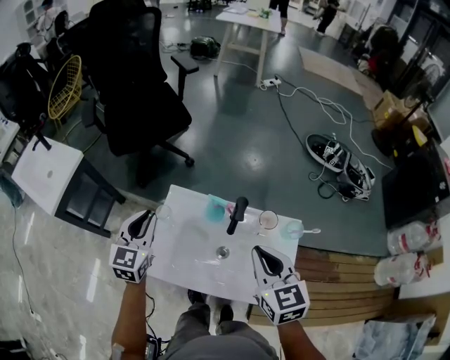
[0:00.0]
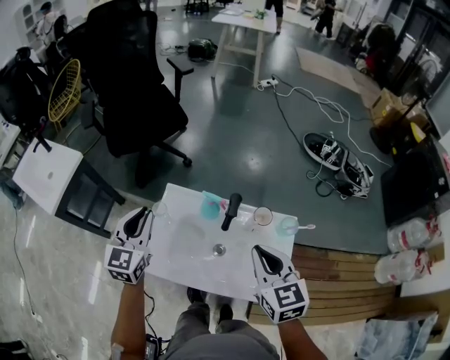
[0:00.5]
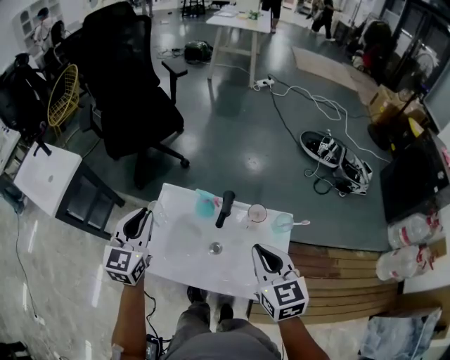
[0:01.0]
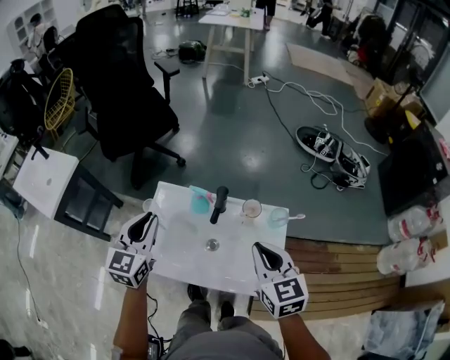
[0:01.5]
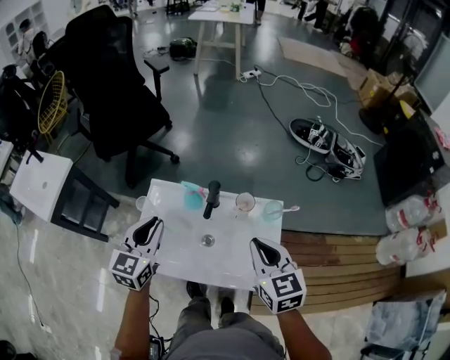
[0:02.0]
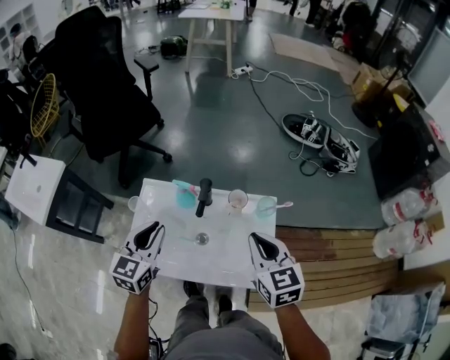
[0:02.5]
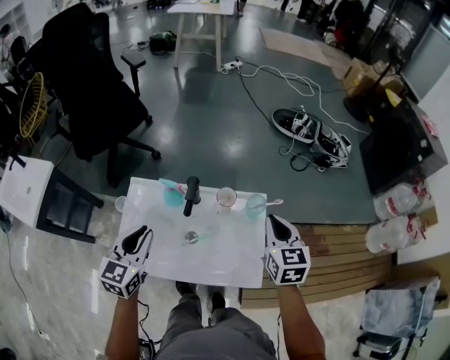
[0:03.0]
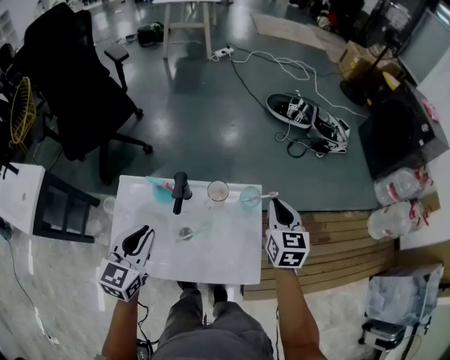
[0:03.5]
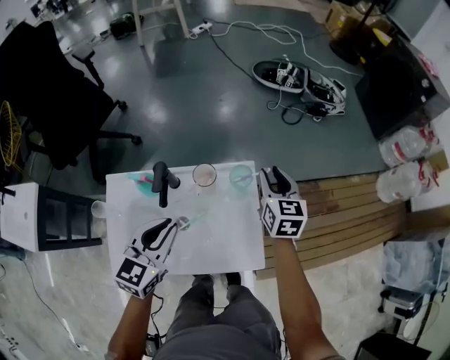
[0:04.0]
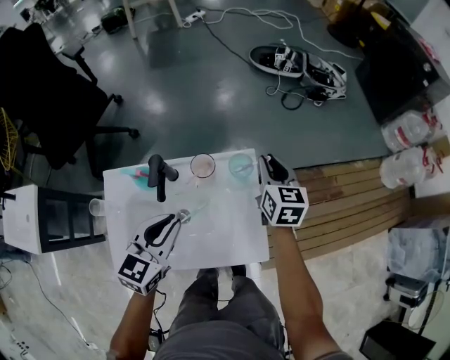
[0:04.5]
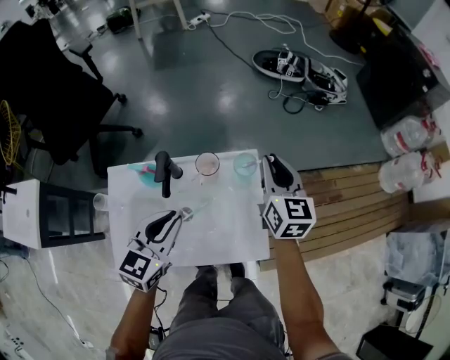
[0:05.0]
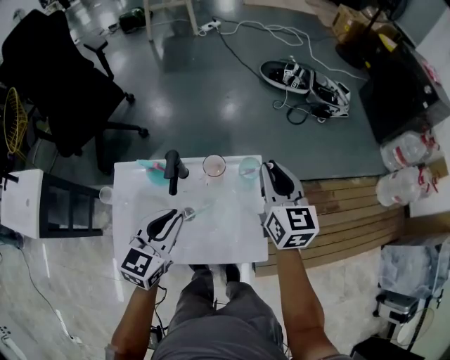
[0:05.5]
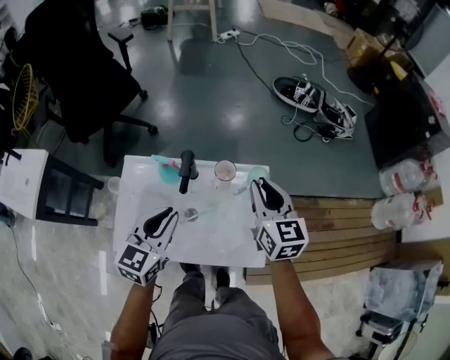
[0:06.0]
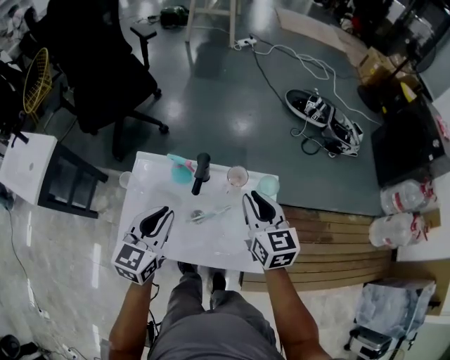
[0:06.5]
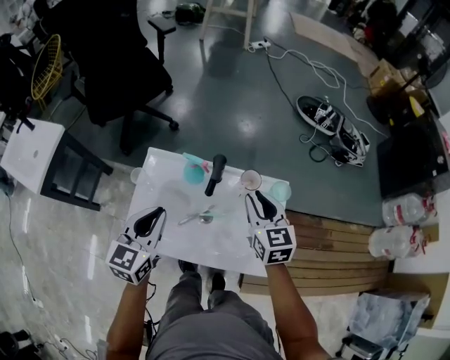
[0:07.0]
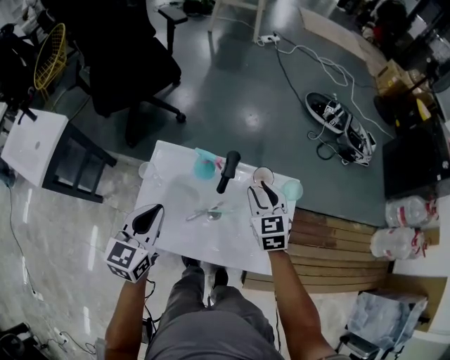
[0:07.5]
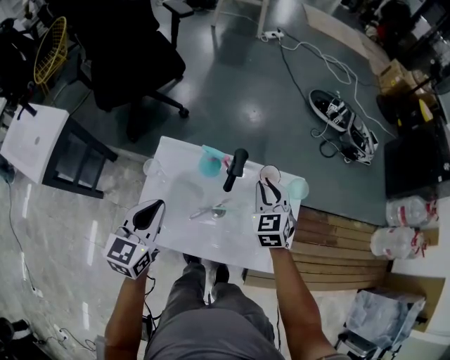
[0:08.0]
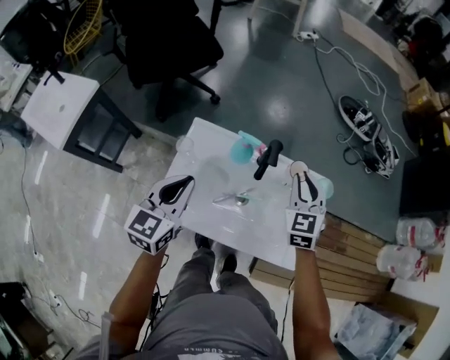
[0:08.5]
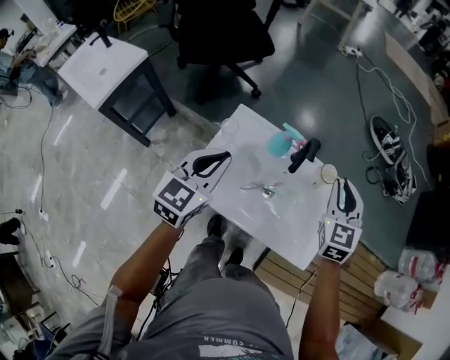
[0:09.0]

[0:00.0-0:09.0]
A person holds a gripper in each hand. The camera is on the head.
0:00.0 to 0:02.0: Both grippers travel together to the right and backward, roughly 10 cm.
0:02.0 to 0:04.5: The right gripper moves roughly 30 cm, and changes its angle by about 30 degrees. The left gripper changes place by approximately 20 cm, and swivels about 30 degrees.
0:04.5 to 0:07.0: The left gripper moves to the left, roughly 15 cm, and swivels about 30 degrees, while the right gripper heads to the left and backward, covering some 20 cm, and rotates roughly 30 degrees.
0:07.0 to 0:09.0: The left gripper heads to the left, covering approximately 5 cm. The right gripper goes some 5 cm upward, and changes its angle by about 20 degrees.

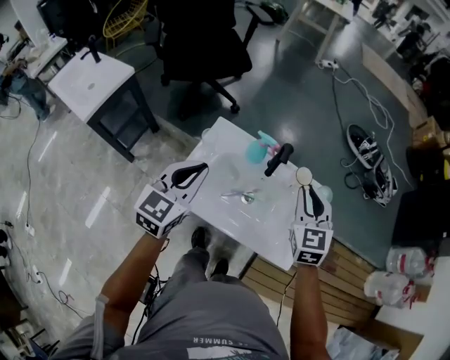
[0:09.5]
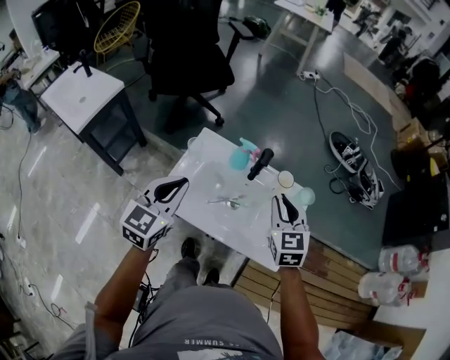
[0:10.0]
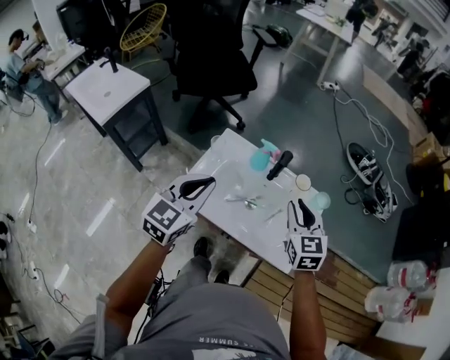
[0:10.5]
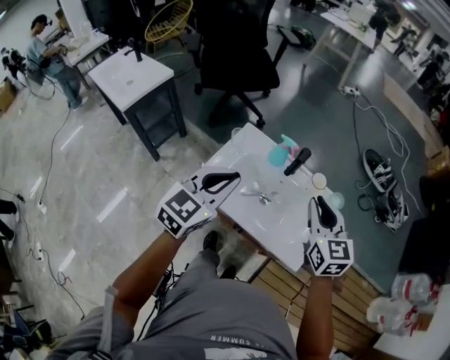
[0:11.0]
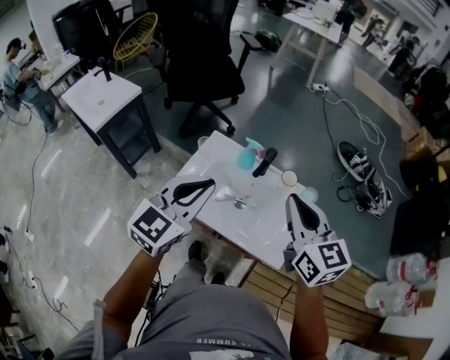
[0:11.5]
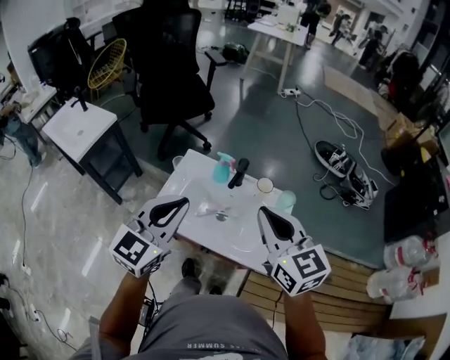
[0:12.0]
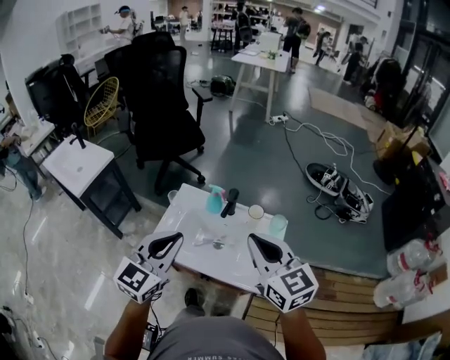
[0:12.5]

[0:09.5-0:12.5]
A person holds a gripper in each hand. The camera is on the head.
0:09.5 to 0:11.0: The left gripper goes approximately 10 cm backward and upward, while the right gripper moves backward, some 10 cm.
0:11.0 to 0:12.5: Both grippers move upward and backward, some 10 cm.

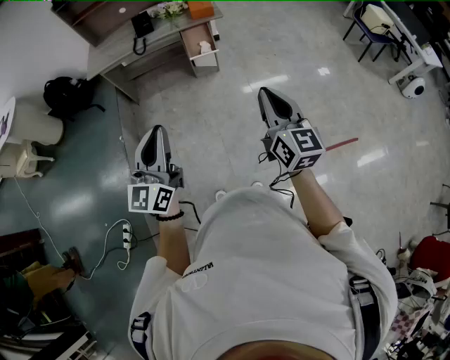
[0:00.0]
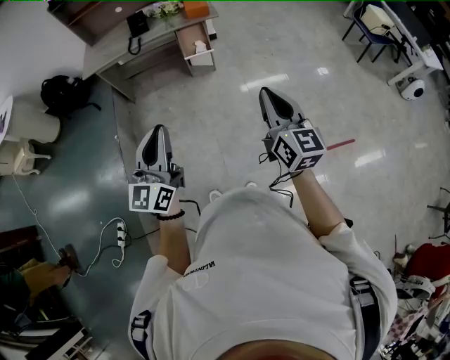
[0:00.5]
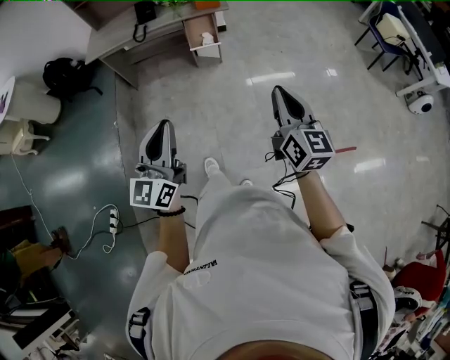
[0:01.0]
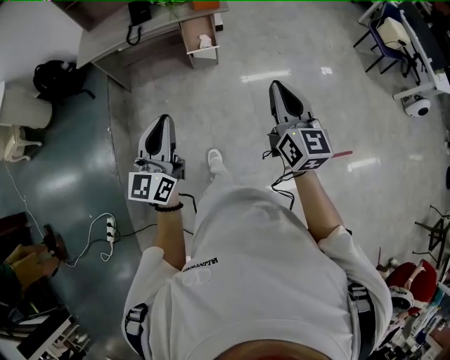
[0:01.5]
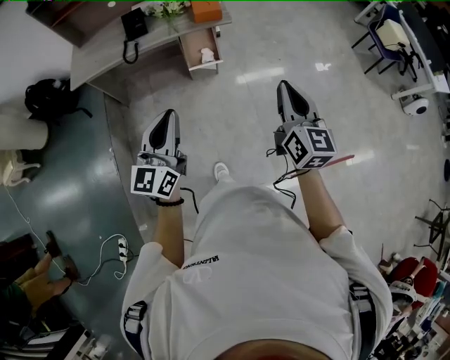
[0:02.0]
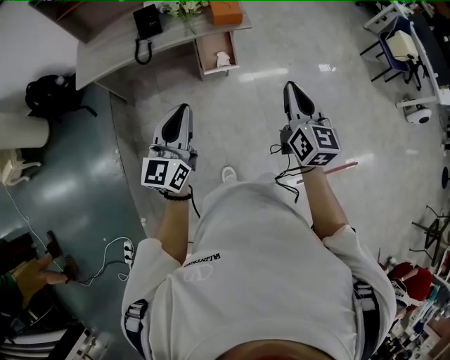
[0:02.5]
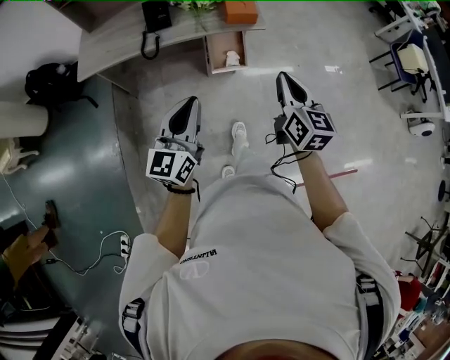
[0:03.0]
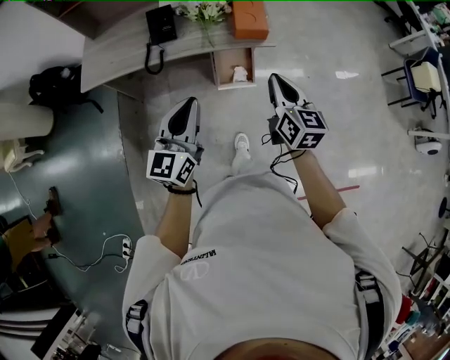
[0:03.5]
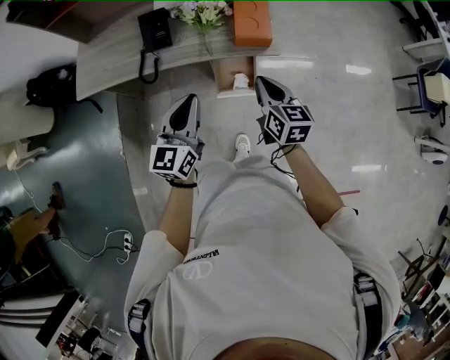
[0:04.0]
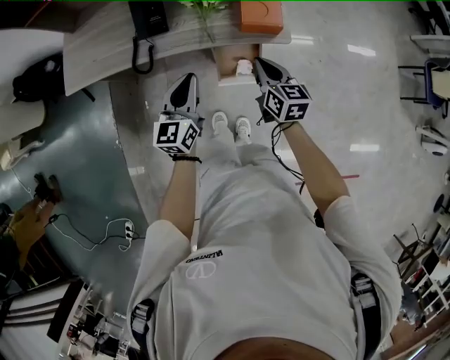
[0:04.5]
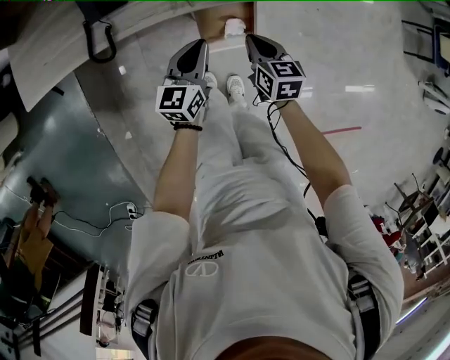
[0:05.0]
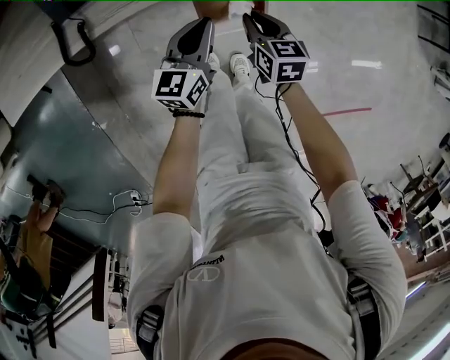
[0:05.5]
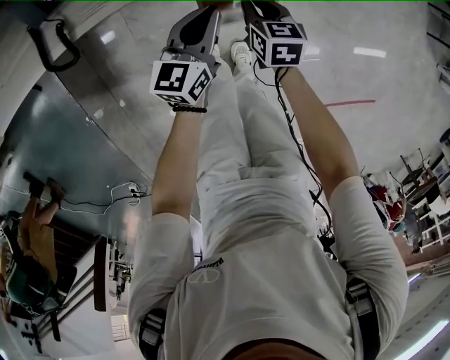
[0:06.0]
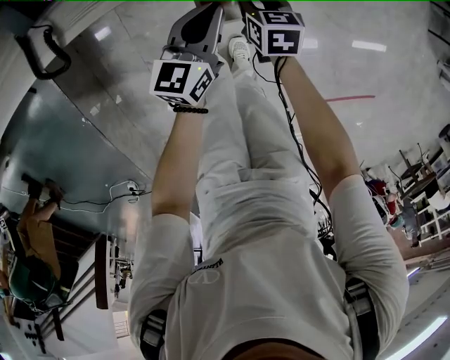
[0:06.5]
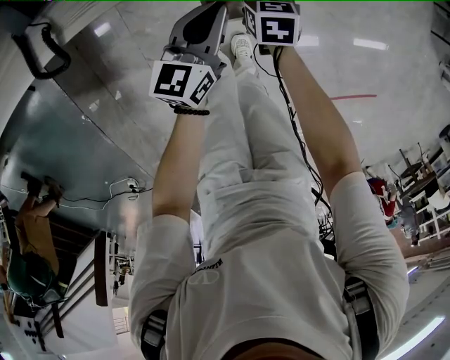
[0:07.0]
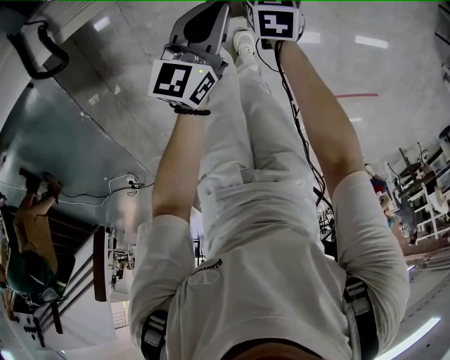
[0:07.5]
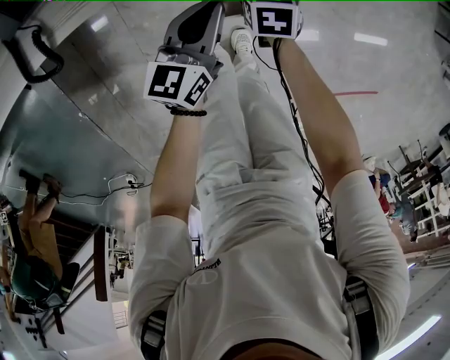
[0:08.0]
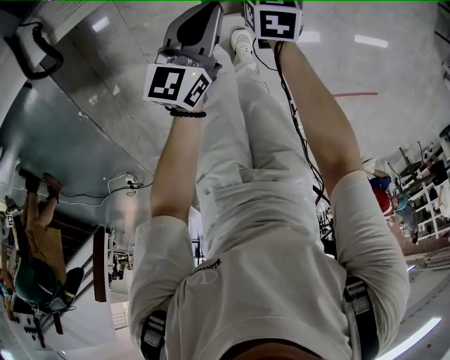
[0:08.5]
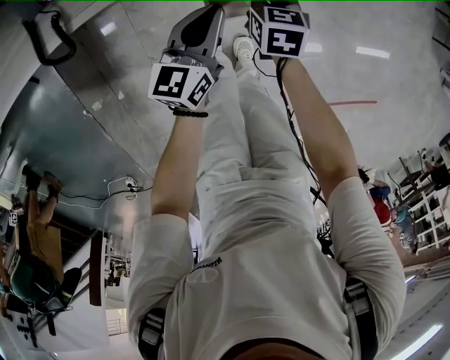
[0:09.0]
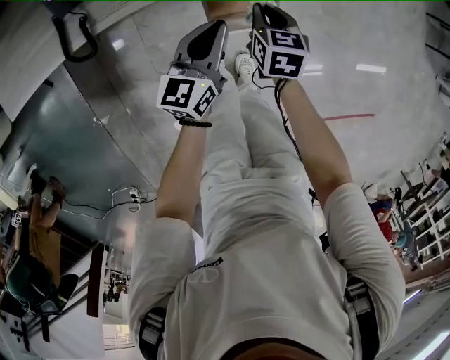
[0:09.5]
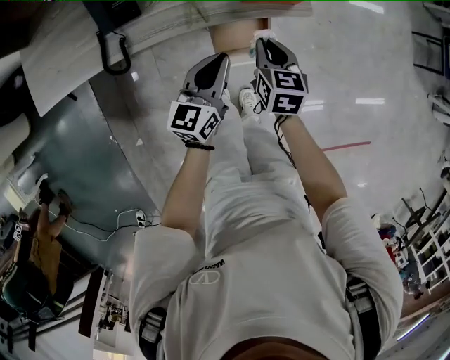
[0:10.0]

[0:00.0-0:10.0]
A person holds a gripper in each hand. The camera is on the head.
0:00.0 to 0:02.0: Both grippers move forward, roughly 30 cm.
0:02.0 to 0:04.0: The left gripper travels forward by approximately 40 cm. Meanwhile the right gripper moves forward and downward, approximately 40 cm, and turns by some 30 degrees.
0:04.0 to 0:06.0: Both grippers travel together downward, about 40 cm. The left gripper changes its angle by some 30 degrees; the right gripper changes its angle by approximately 30 degrees.
0:06.0 to 0:08.0: The right gripper goes some 5 cm downward.
0:08.0 to 0:10.0: The grippers both shift upward by roughly 25 cm. The right gripper changes its angle by approximately 20 degrees.

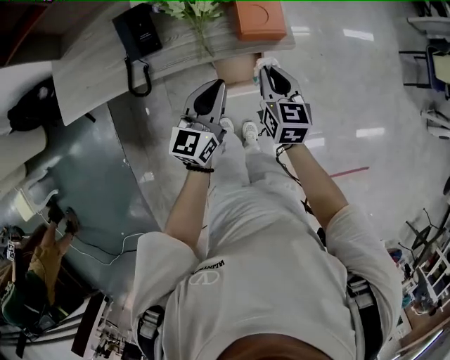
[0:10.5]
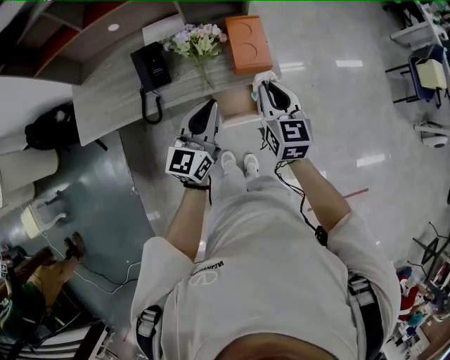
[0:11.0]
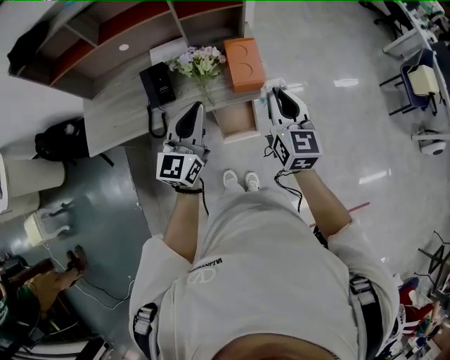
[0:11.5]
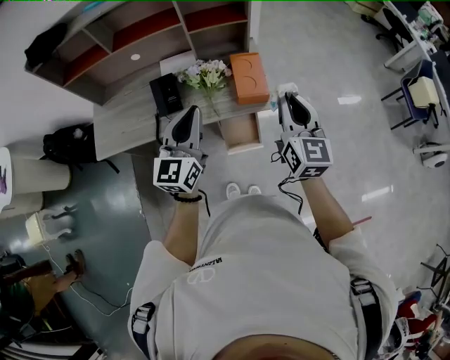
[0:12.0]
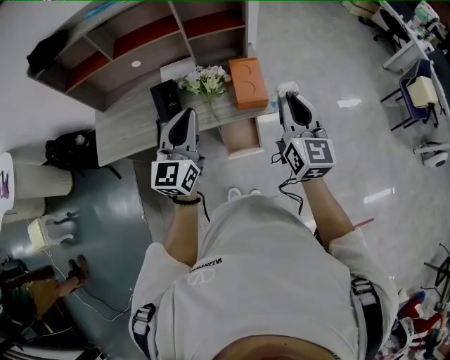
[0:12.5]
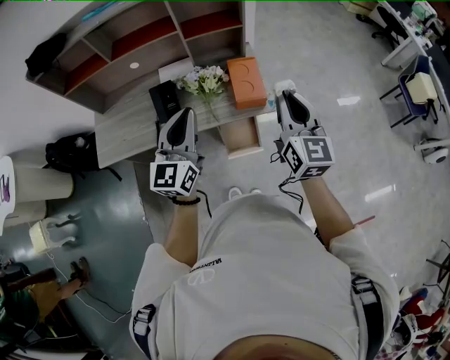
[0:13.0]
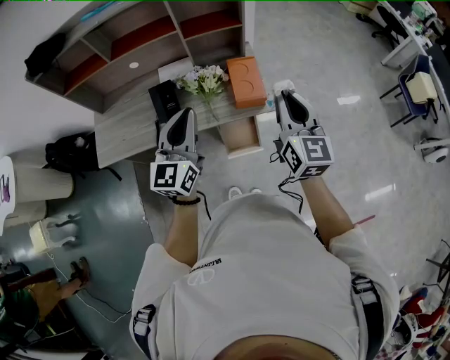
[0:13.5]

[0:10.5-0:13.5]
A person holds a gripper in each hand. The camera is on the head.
0:10.5 to 0:12.0: The two grippers go about 25 cm upward. The right gripper turns by about 30 degrees.
0:12.0 to 0:13.5: There are only small adjustments of the grippers.

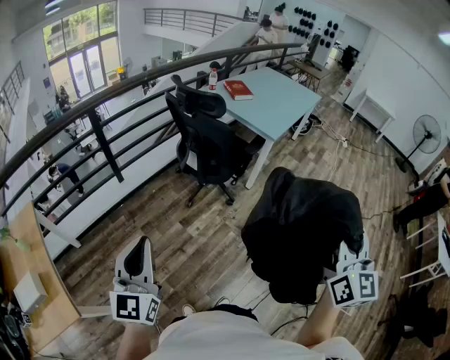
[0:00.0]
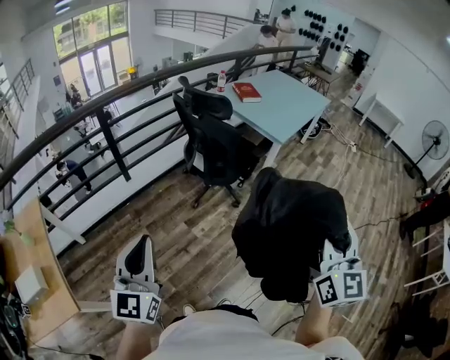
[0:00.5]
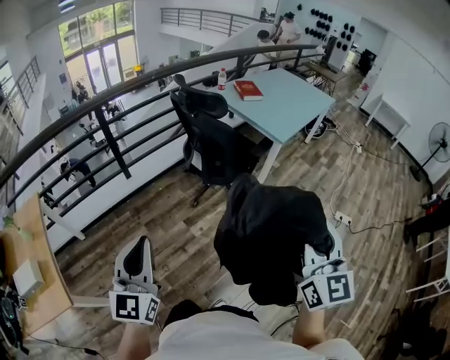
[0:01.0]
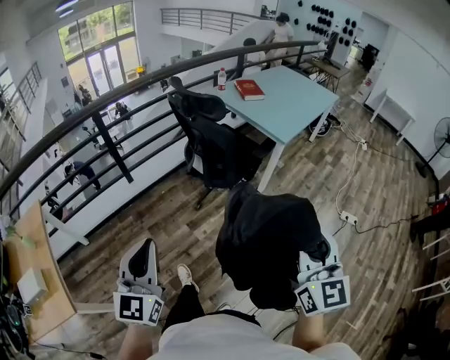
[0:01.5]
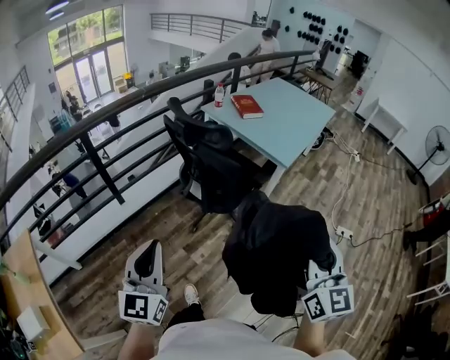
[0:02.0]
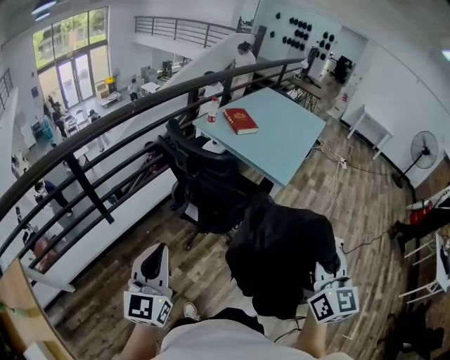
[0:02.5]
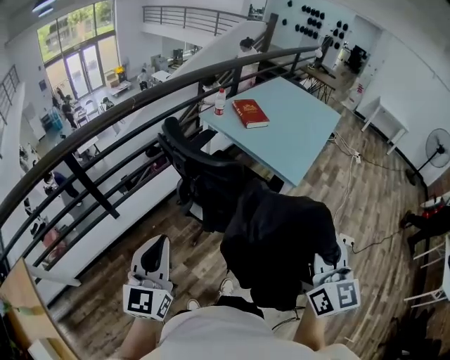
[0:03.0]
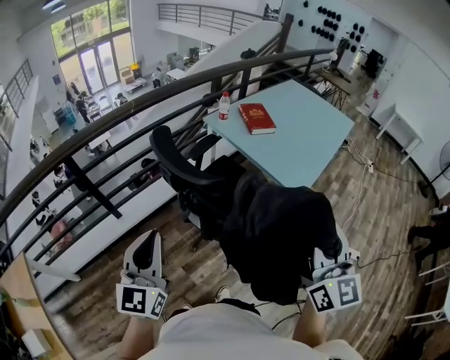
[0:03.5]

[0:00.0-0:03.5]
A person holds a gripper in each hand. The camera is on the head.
0:00.0 to 0:02.0: The right gripper travels forward and downward by approximately 20 cm, while the left gripper heads forward, covering approximately 20 cm.
0:02.0 to 0:03.5: The two grippers go some 25 cm forward.
